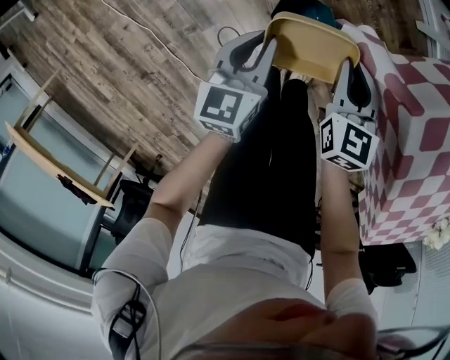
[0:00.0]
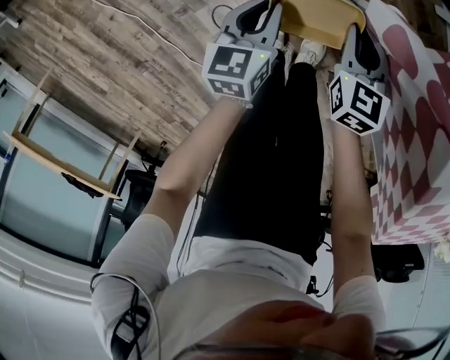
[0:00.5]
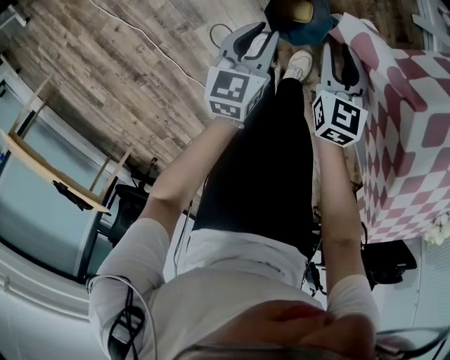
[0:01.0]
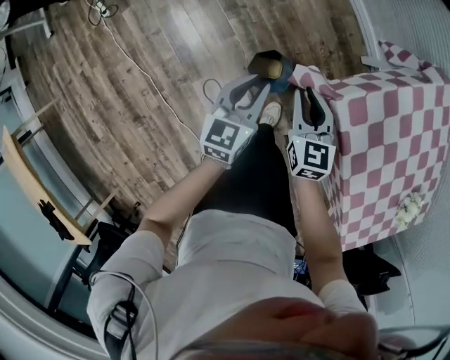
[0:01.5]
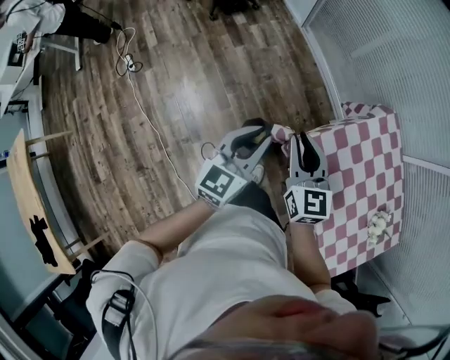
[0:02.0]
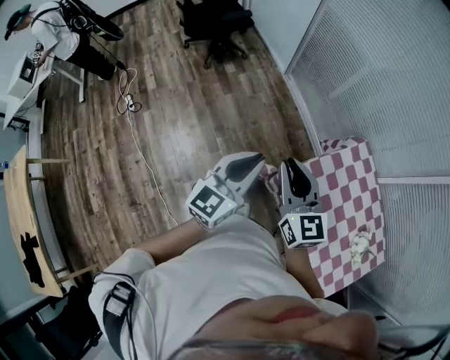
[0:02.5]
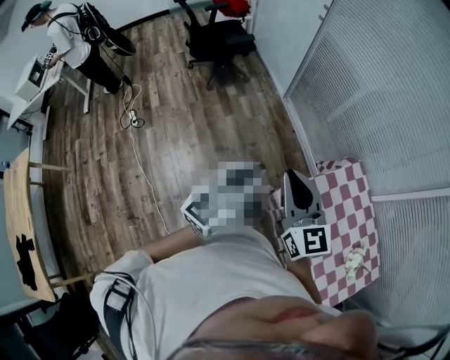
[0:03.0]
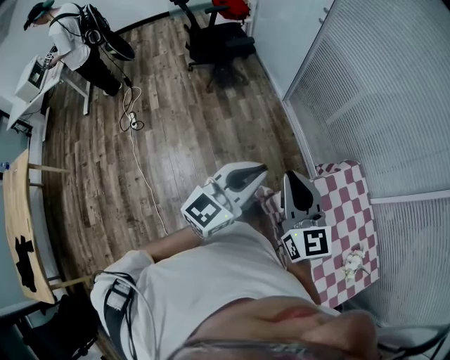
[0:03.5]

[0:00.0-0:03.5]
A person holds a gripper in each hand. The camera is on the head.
0:00.0 to 0:02.0: Both grippers travel together upward, about 40 cm. The left gripper swivels some 30 degrees. Meanwhile the right gripper swivels some 30 degrees.
0:02.0 to 0:03.5: The two grippers go some 20 cm upward.

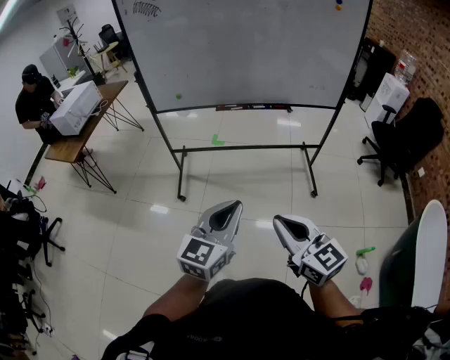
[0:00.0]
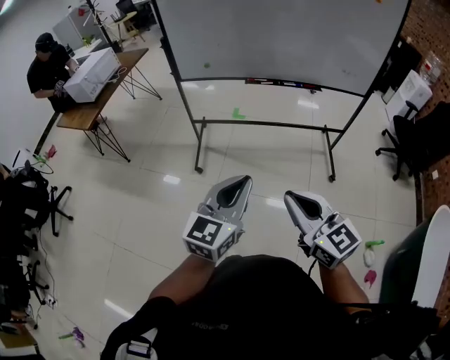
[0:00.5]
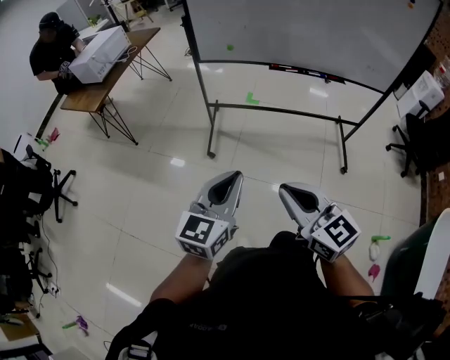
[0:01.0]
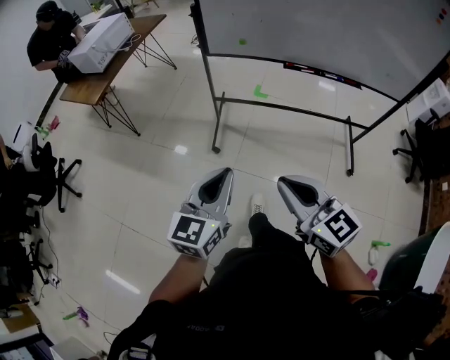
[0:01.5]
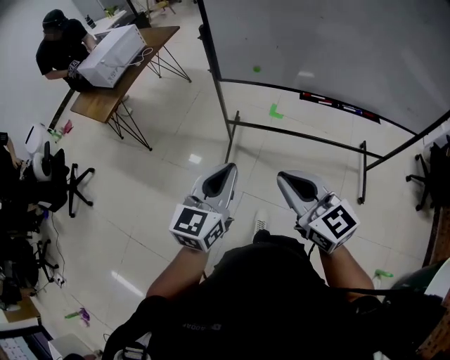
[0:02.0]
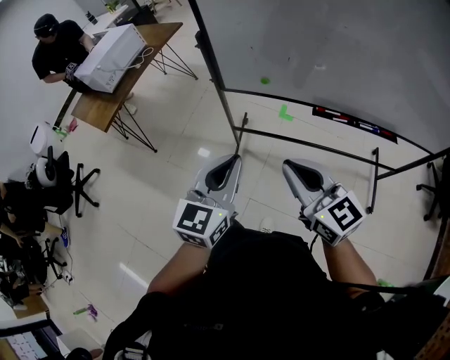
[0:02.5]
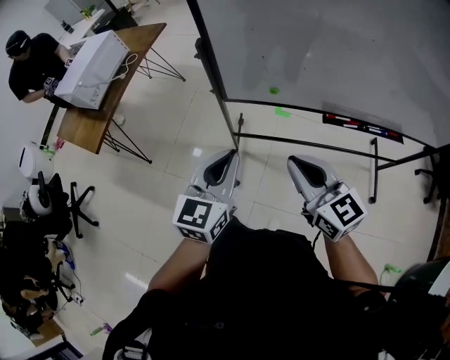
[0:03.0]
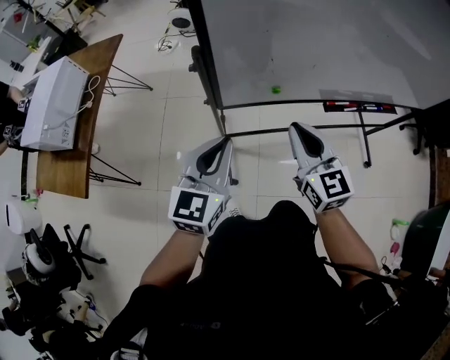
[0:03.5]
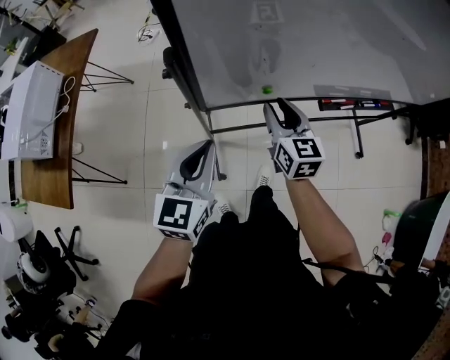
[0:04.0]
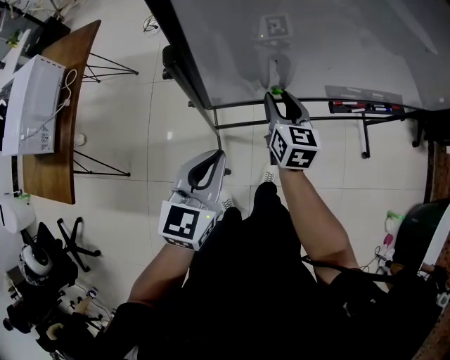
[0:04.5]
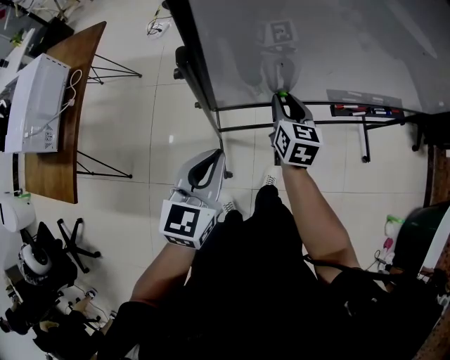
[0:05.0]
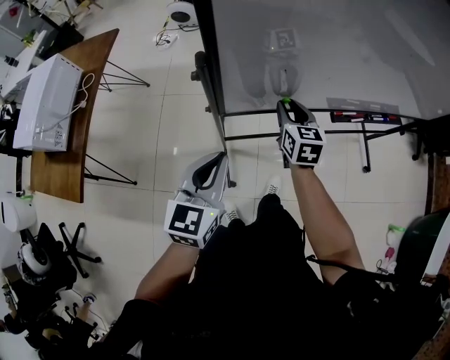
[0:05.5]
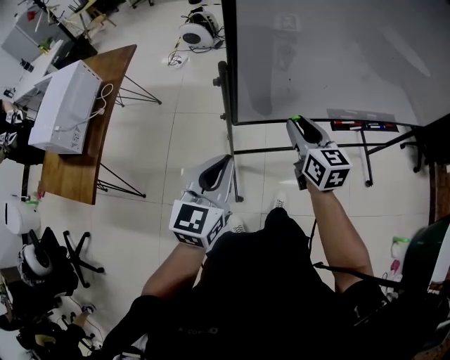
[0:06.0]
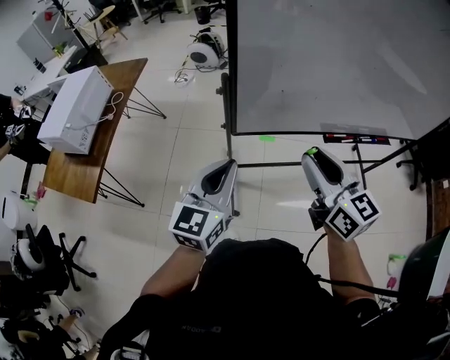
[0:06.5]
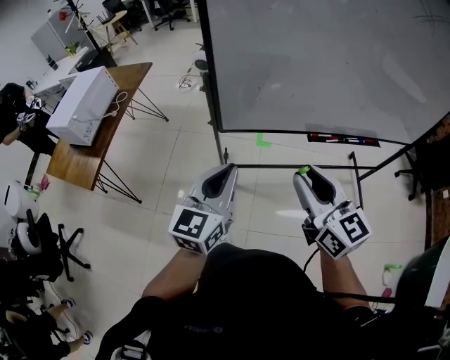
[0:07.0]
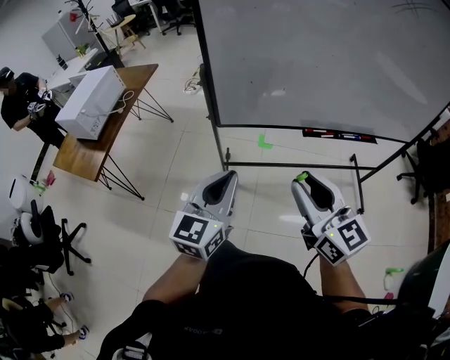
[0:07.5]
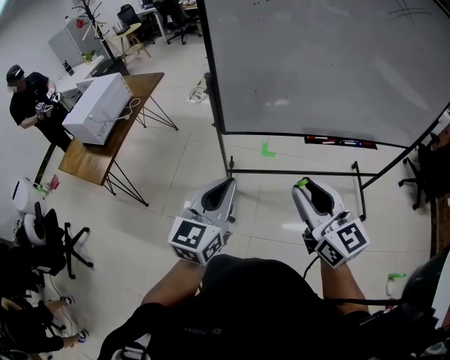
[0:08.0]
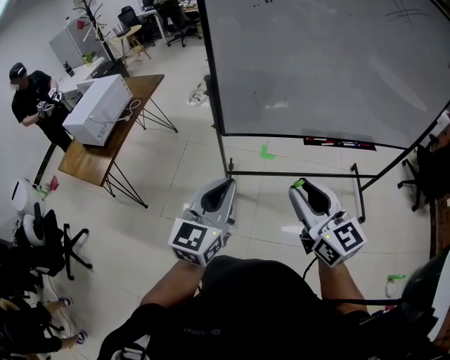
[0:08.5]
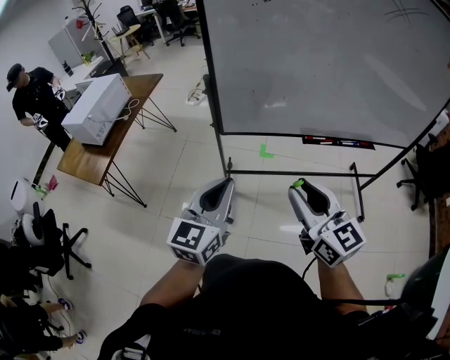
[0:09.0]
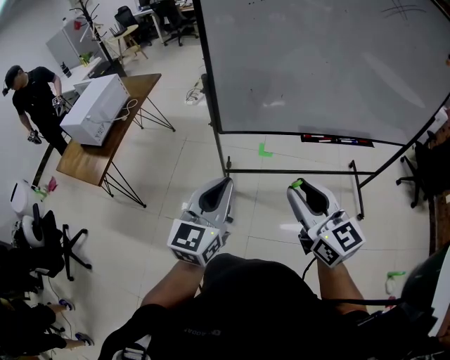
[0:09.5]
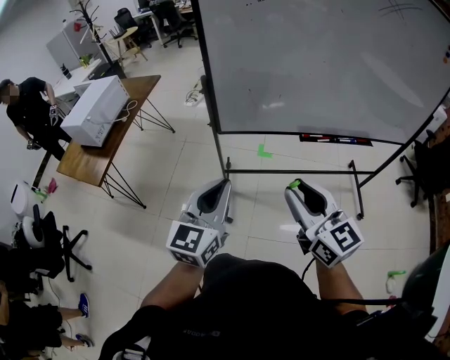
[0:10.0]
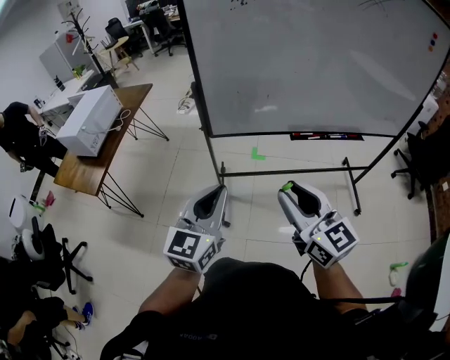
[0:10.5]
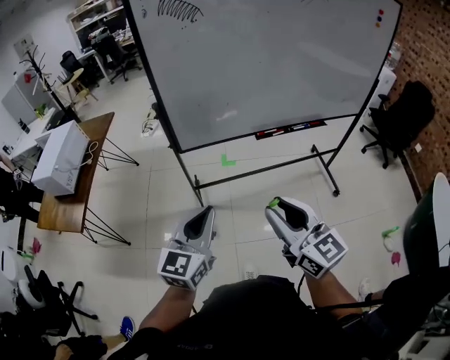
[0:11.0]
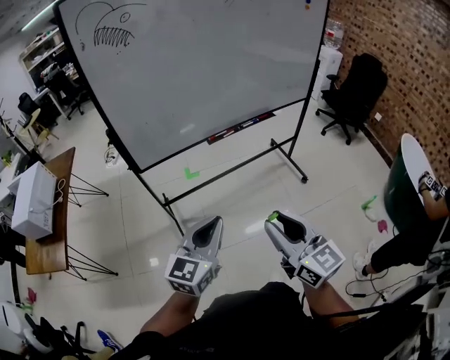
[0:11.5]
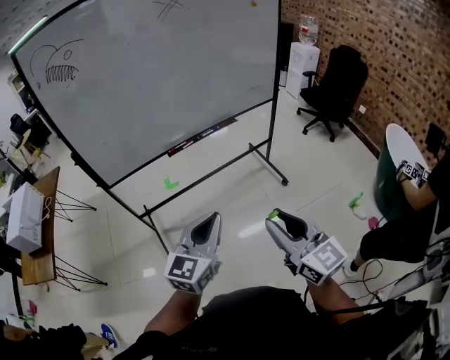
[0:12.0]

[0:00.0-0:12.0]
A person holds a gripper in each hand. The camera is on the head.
0:00.0 to 0:02.0: The grippers both shift forward and to the left by about 35 cm.
0:02.0 to 0:04.0: The two grippers travel together, approximately 40 cm. The right gripper rotates about 50 degrees, and opens up.
0:04.0 to 0:06.0: The right gripper moves upward, roughly 5 cm. Meanwhile the left gripper goes approximately 5 cm backward.
0:06.0 to 0:08.0: The left gripper travels backward, to the right and upward by about 25 cm, while the right gripper moves backward and upward, some 35 cm, and rotates about 20 degrees.
0:08.0 to 0:10.0: The grippers stay close to where they were, moving slightly.
0:10.0 to 0:12.0: The right gripper shifts by about 40 cm, and swivels some 30 degrees; the left gripper shifts by some 35 cm, and swivels about 30 degrees.

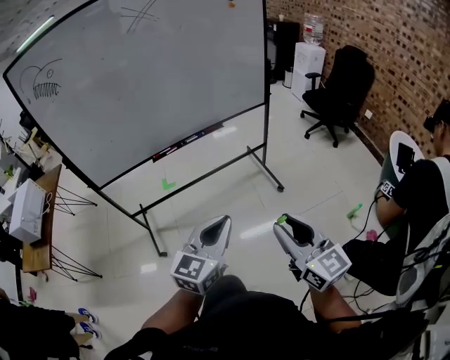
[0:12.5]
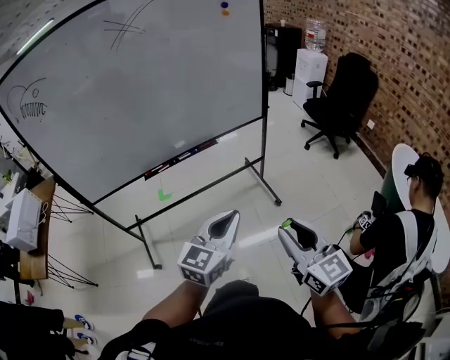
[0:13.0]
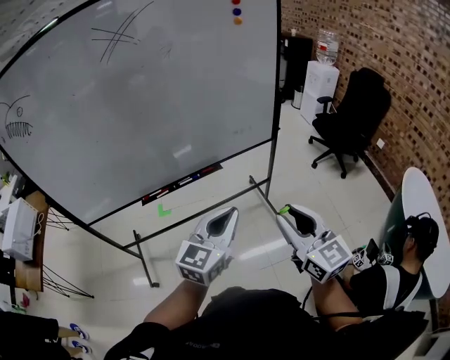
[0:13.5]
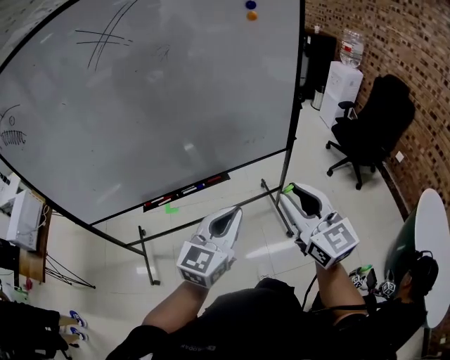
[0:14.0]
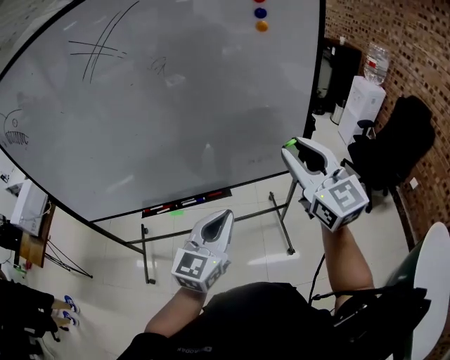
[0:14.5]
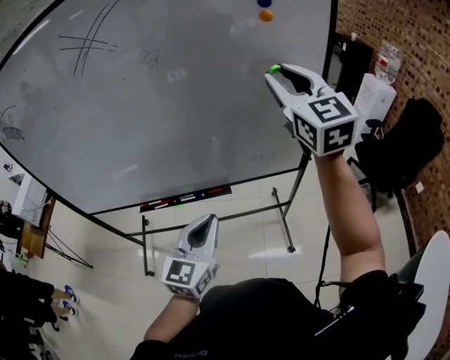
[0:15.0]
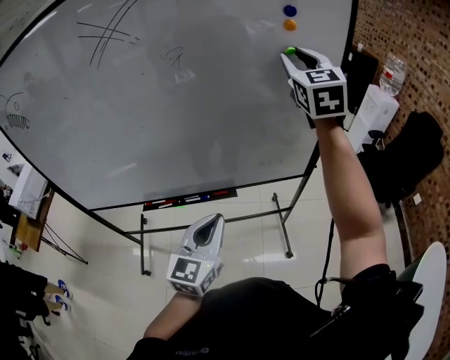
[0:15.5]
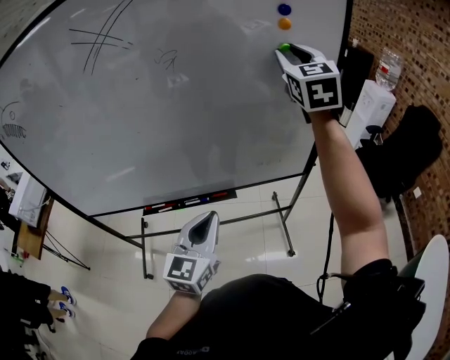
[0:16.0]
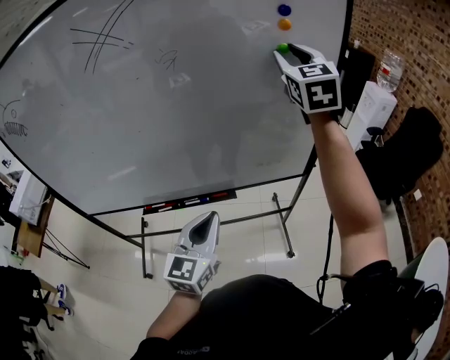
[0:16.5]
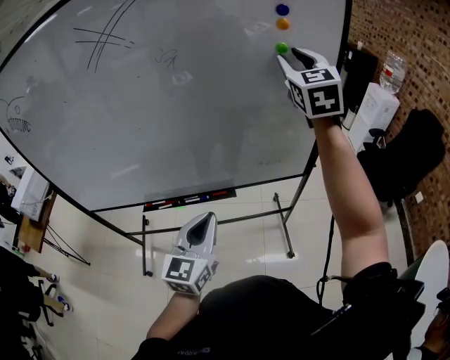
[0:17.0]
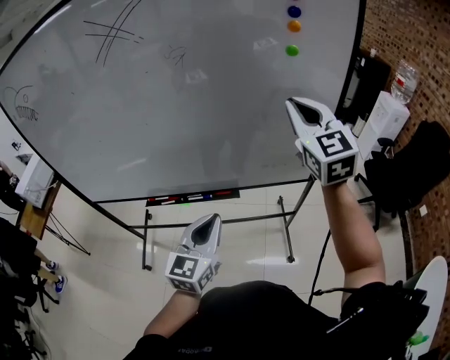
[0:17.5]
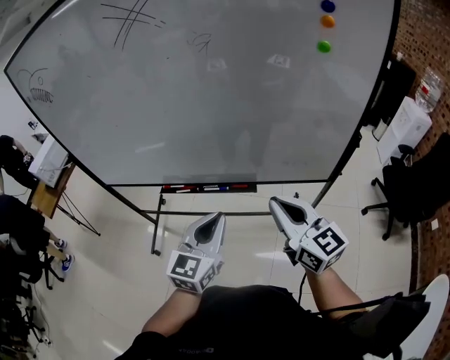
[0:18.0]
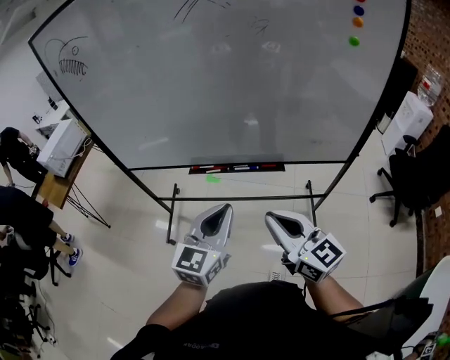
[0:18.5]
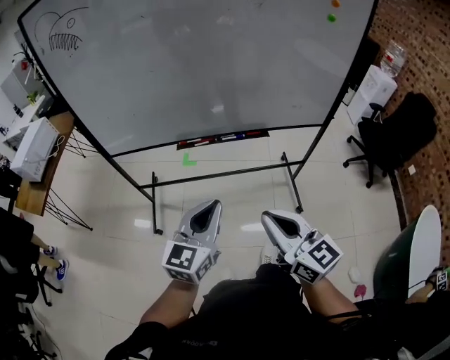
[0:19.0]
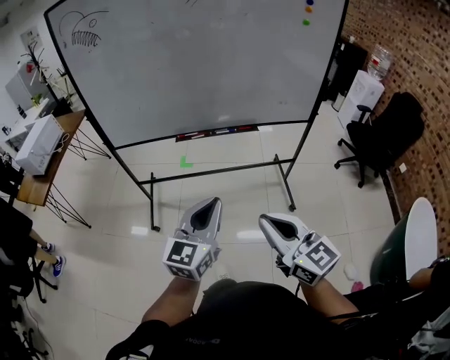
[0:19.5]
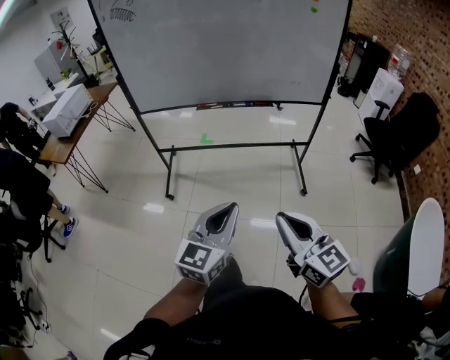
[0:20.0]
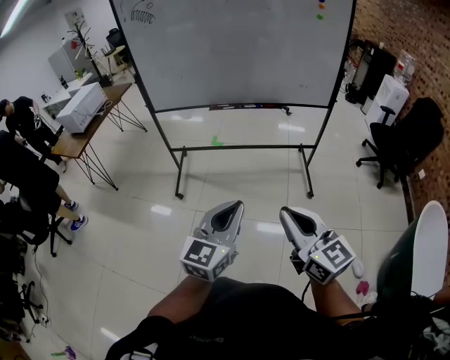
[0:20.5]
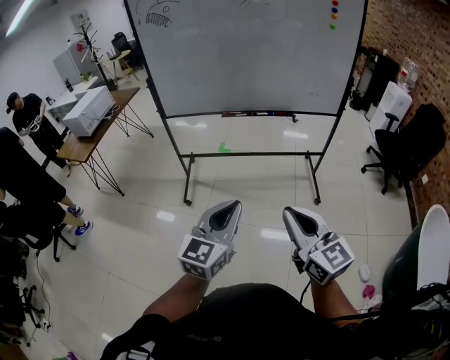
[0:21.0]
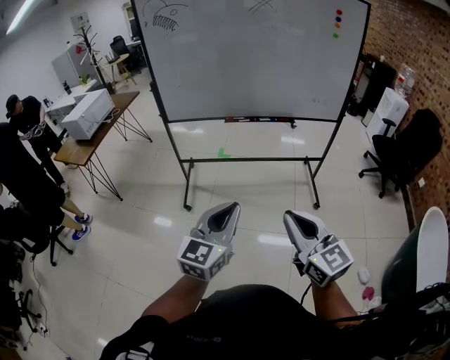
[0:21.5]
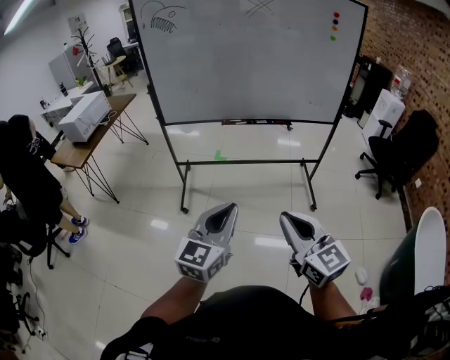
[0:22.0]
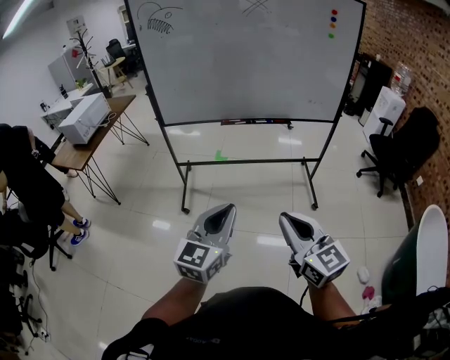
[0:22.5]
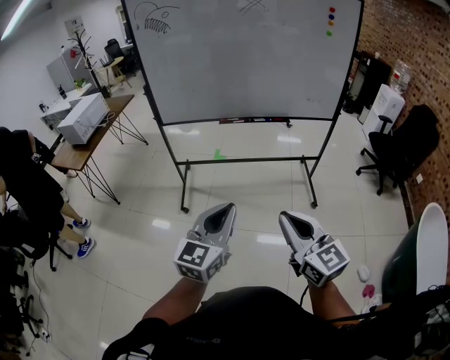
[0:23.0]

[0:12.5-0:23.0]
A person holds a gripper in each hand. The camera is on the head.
0:12.5 to 0:14.5: The pair of grippers is taken forward, approximately 50 cm. The right gripper turns by some 20 degrees.
0:14.5 to 0:16.5: The left gripper is displaced to the left by approximately 5 cm. The right gripper travels forward and upward by some 25 cm, and swivels some 20 degrees.
0:16.5 to 0:19.0: The right gripper goes approximately 70 cm backward, to the left and downward, turns by approximately 50 degrees, and closes its fingers, while the left gripper shifts approximately 30 cm to the left and backward.
0:19.0 to 0:21.0: The two grippers go approximately 35 cm backward.
0:21.0 to 0:23.0: The grippers make only small movements.

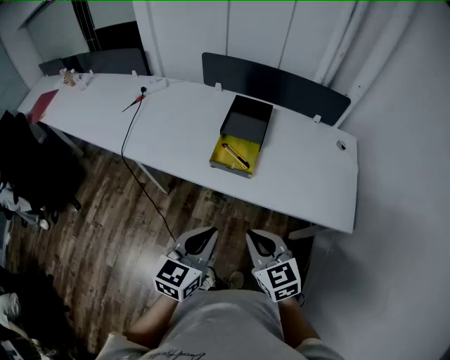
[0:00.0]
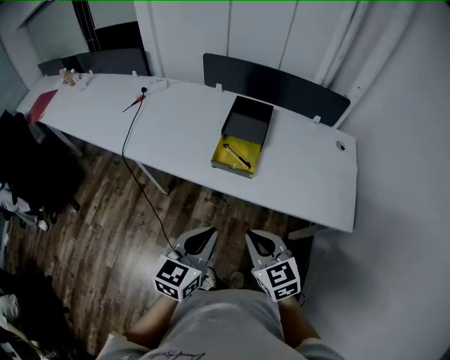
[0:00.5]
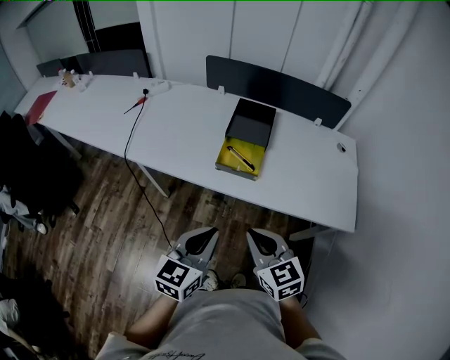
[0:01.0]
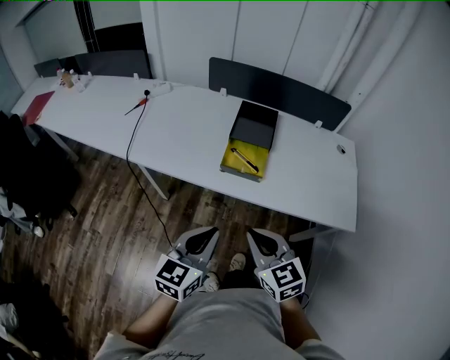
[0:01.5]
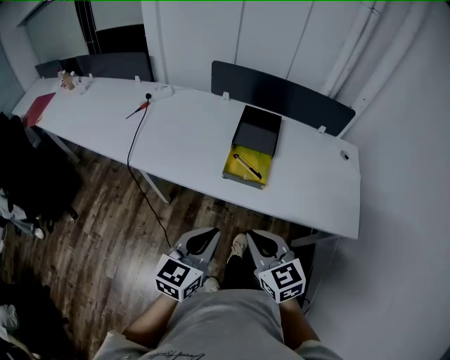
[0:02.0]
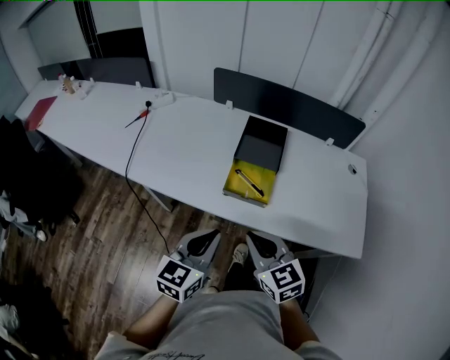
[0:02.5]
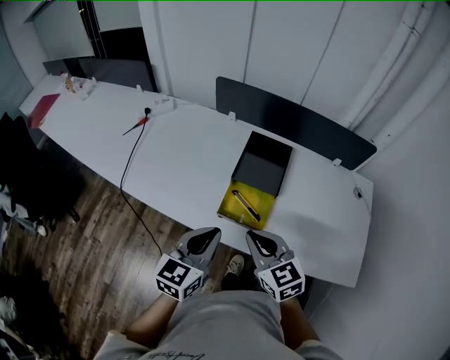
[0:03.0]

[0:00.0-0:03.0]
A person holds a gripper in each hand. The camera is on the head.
0:00.0 to 0:01.5: Both grippers move to the left, about 5 cm.
0:01.5 to 0:03.0: Both grippers move forward, approximately 20 cm.
